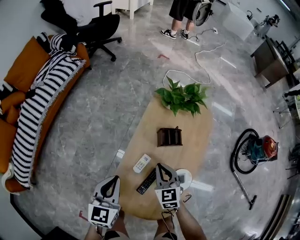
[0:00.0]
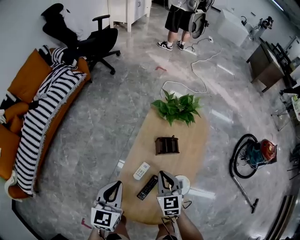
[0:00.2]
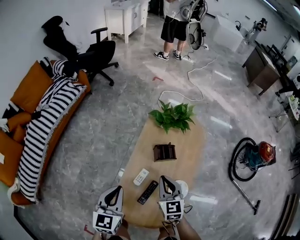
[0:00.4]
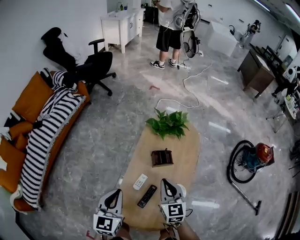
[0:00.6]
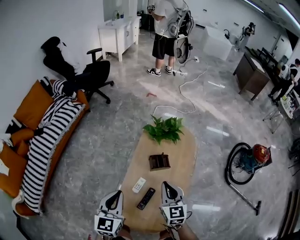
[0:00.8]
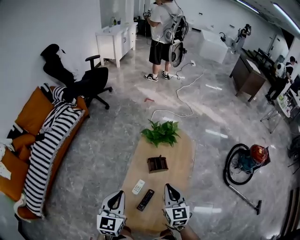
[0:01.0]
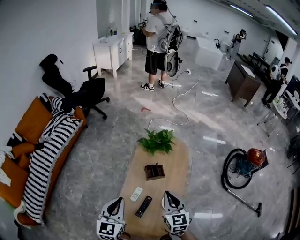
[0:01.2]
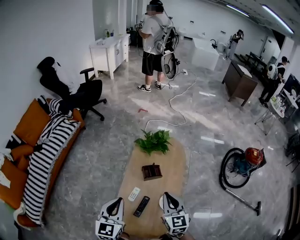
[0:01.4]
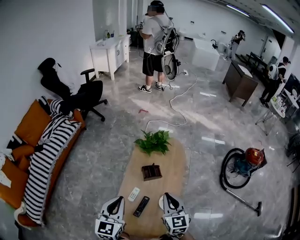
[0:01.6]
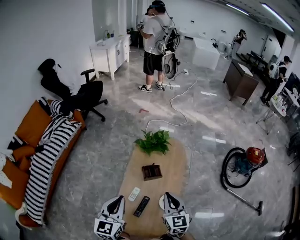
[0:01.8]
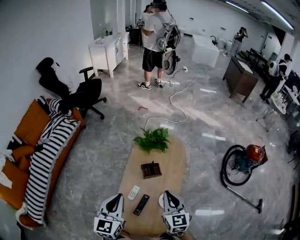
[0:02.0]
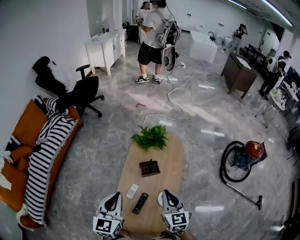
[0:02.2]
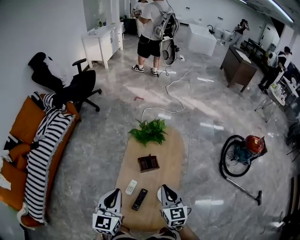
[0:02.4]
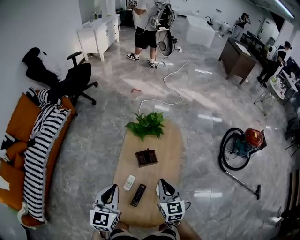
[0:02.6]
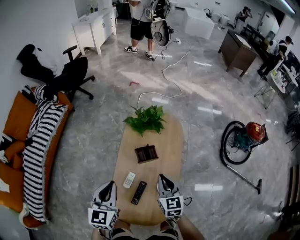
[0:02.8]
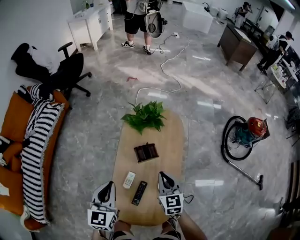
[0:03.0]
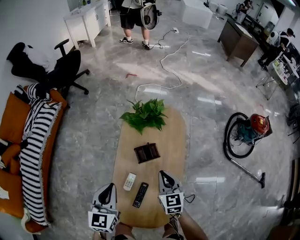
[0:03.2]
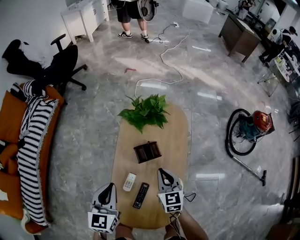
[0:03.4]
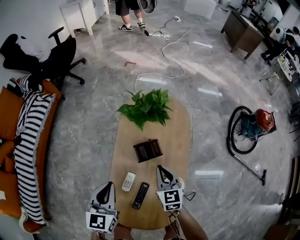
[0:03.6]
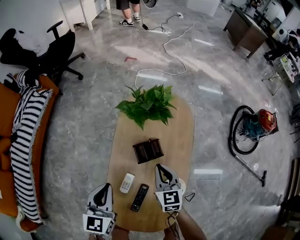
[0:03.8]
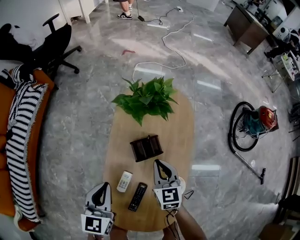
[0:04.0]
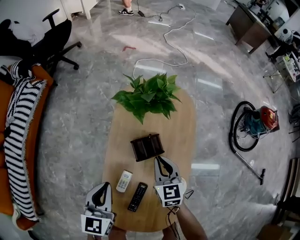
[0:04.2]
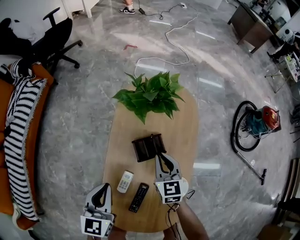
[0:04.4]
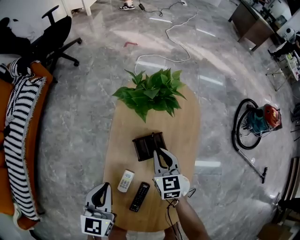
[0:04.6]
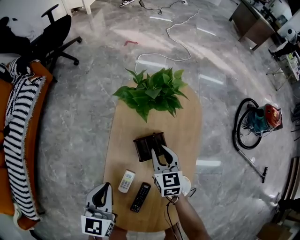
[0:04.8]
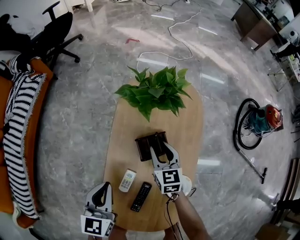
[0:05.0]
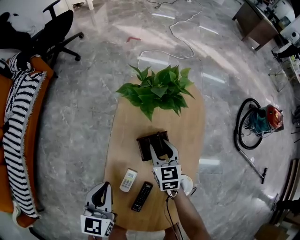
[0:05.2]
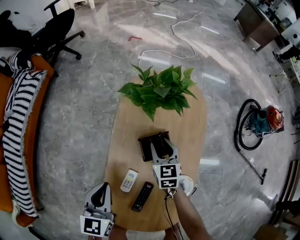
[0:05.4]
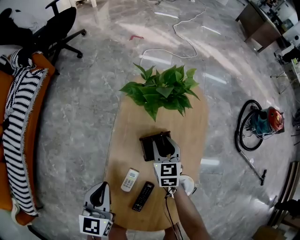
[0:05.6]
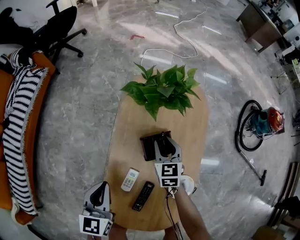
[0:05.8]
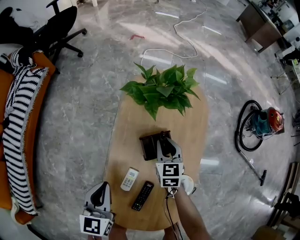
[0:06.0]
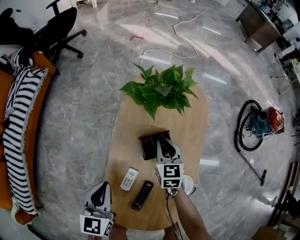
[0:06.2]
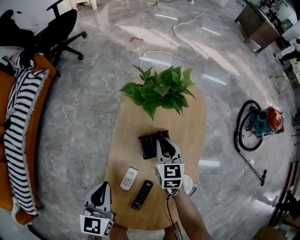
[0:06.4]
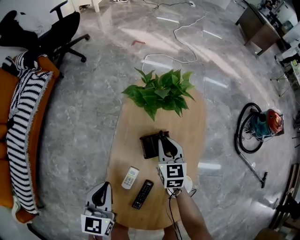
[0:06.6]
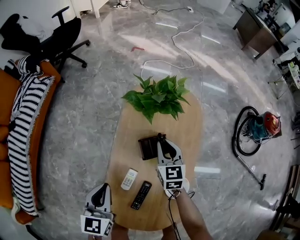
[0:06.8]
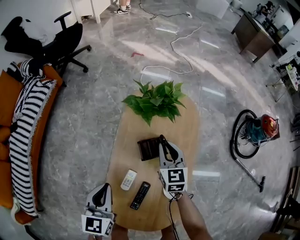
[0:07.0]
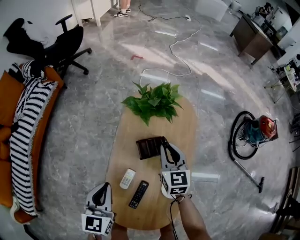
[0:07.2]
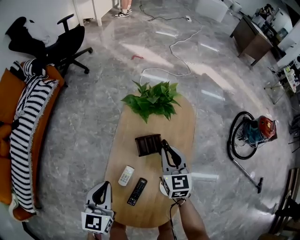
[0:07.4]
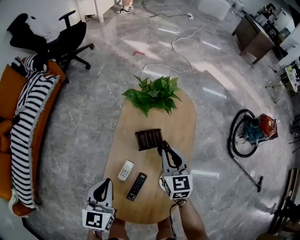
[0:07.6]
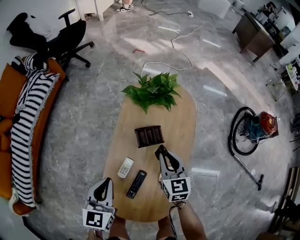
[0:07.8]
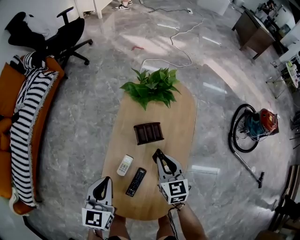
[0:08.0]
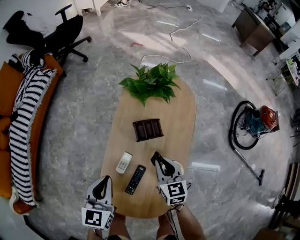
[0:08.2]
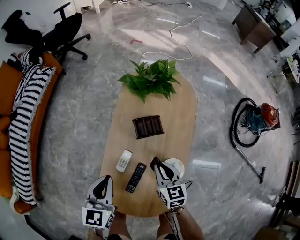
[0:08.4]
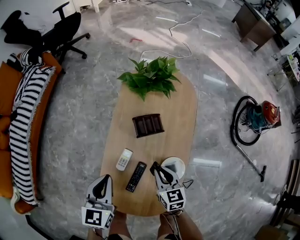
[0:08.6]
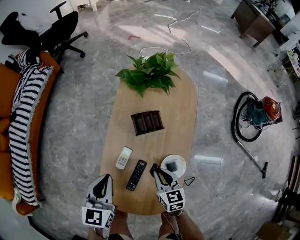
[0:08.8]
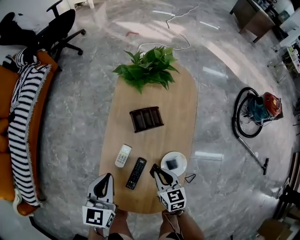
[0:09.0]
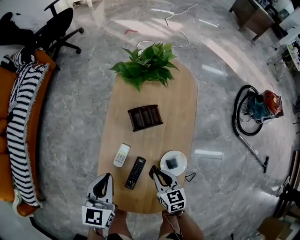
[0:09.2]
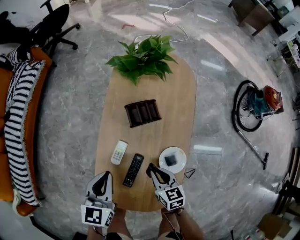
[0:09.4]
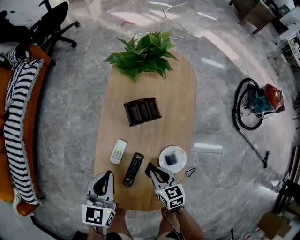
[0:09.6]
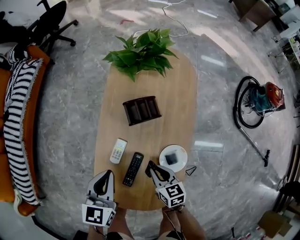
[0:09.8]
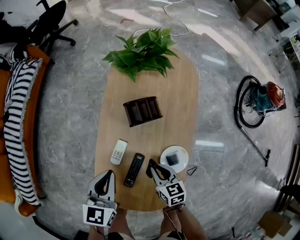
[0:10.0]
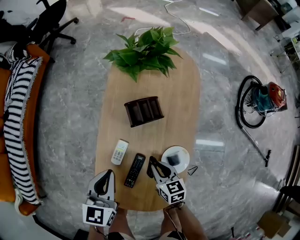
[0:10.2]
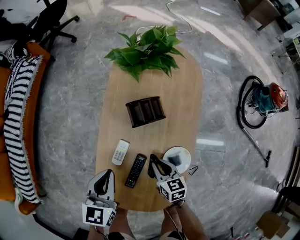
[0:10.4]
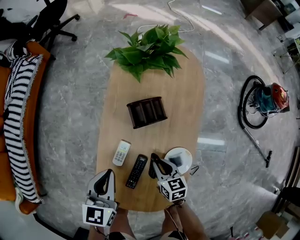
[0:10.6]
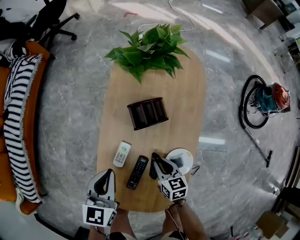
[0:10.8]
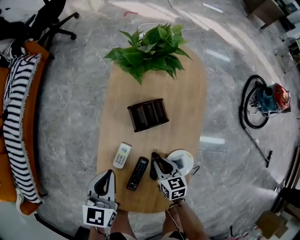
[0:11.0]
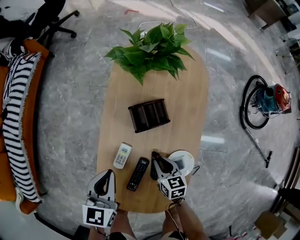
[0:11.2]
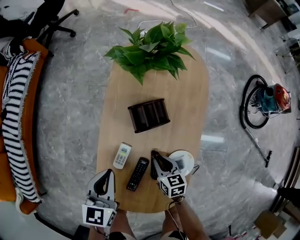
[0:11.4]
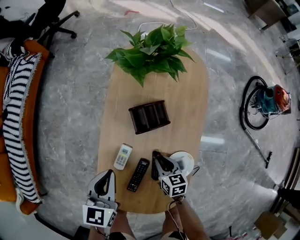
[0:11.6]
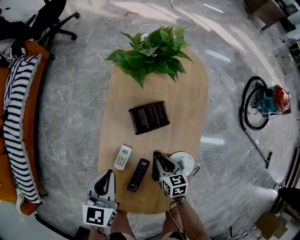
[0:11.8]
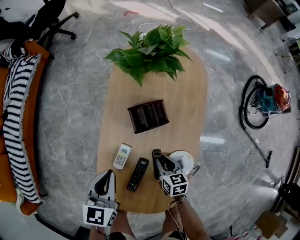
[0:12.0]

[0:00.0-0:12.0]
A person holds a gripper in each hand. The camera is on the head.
0:00.0 to 0:01.6: The left gripper heads upward, covering about 20 cm, while the right gripper travels upward and to the right by some 30 cm, and changes its angle by approximately 20 degrees.
0:01.6 to 0:03.0: Both grippers move downward and forward, some 15 cm.
0:03.0 to 0:04.4: The left gripper moves downward, about 20 cm. The right gripper goes approximately 20 cm downward and forward.
0:04.4 to 0:06.0: The right gripper travels downward and forward by some 10 cm.
0:06.0 to 0:07.6: The right gripper heads upward and backward, covering roughly 20 cm. The left gripper travels upward and backward by some 10 cm.
0:07.6 to 0:09.0: The right gripper is displaced backward and downward by approximately 25 cm, and swivels about 20 degrees; the left gripper shifts some 5 cm downward.
0:09.0 to 0:10.4: The right gripper moves downward, approximately 5 cm. Meanwhile the left gripper shifts by roughly 5 cm.
0:10.4 to 0:12.0: The right gripper ends up approximately 5 cm from where it was.

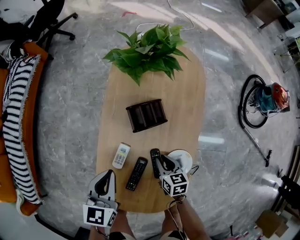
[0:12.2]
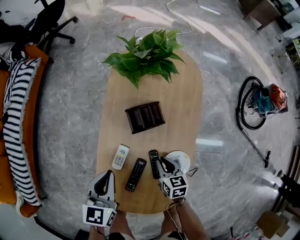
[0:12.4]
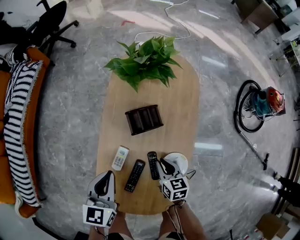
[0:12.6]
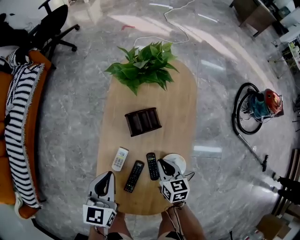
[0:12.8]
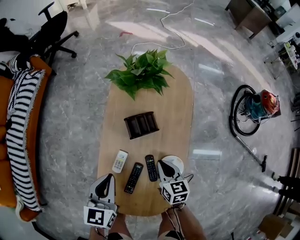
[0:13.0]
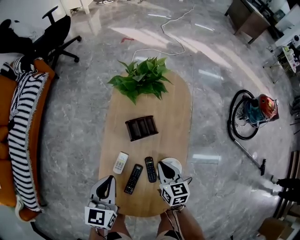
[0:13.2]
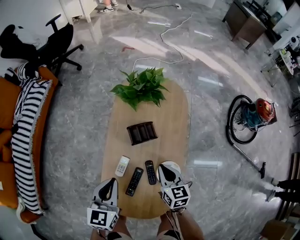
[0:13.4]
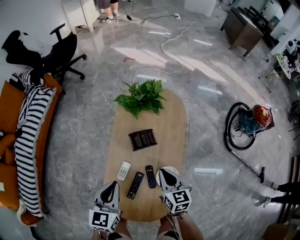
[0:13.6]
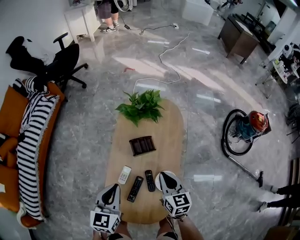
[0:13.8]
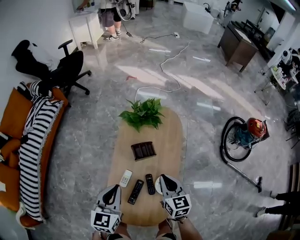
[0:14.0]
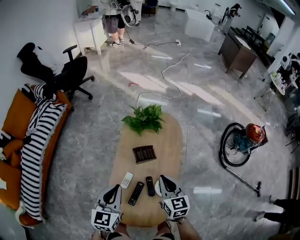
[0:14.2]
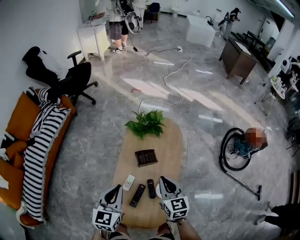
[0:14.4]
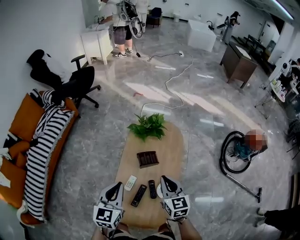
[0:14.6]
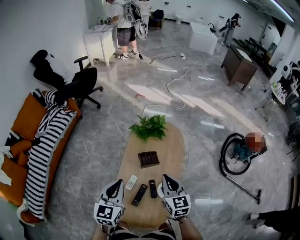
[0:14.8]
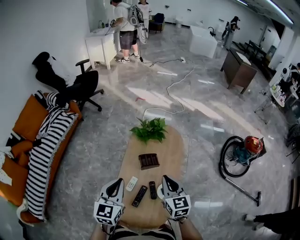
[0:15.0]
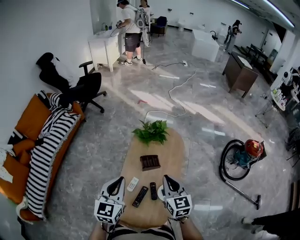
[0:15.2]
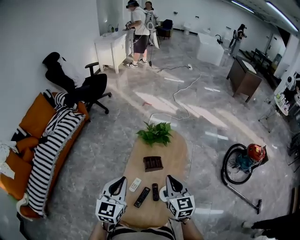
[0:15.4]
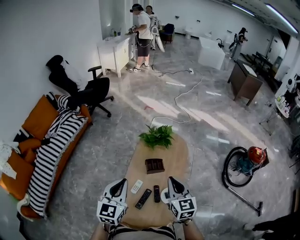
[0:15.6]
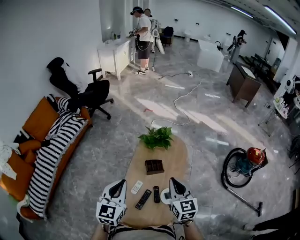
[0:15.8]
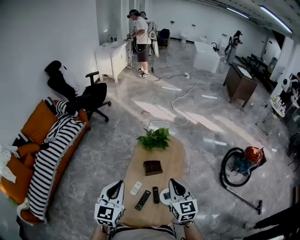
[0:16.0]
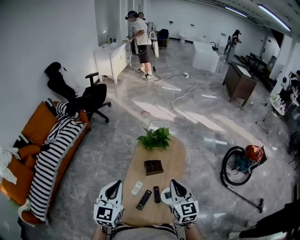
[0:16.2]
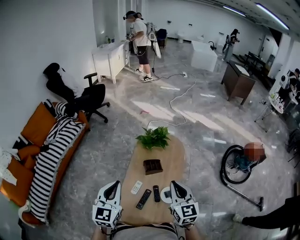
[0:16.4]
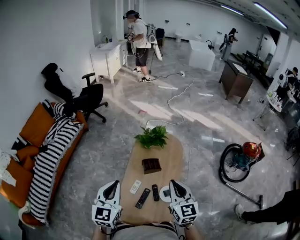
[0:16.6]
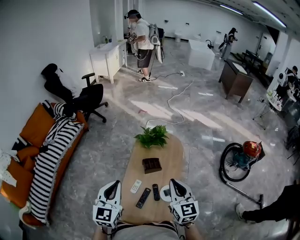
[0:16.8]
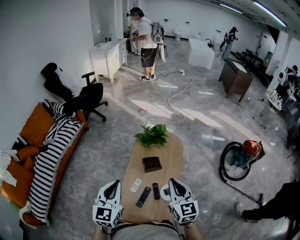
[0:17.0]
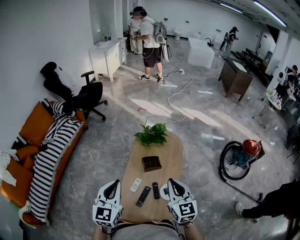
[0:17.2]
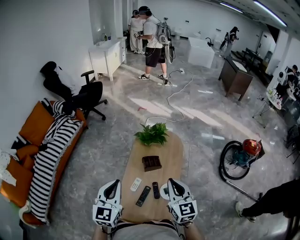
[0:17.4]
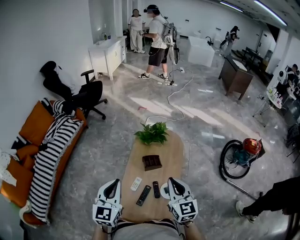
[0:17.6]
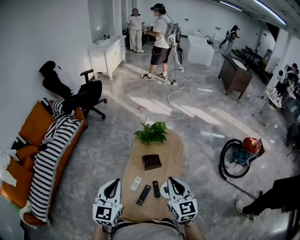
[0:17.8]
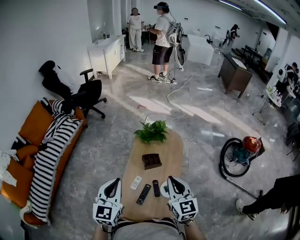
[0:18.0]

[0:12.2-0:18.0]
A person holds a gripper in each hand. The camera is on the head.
0:12.2 to 0:13.6: The left gripper goes about 15 cm upward; the right gripper heads upward, covering approximately 25 cm, and swivels roughly 20 degrees.
0:13.6 to 0:15.0: Both grippers move upward, some 20 cm.
0:15.0 to 0:16.6: The grippers both shift upward and backward by about 10 cm.
0:16.6 to 0:18.0: Both grippers stay put.

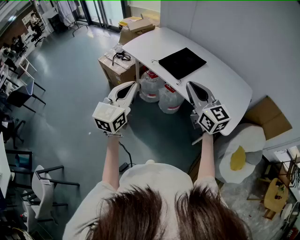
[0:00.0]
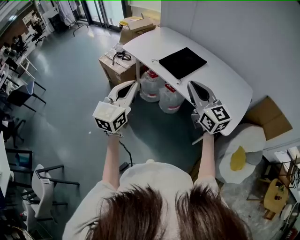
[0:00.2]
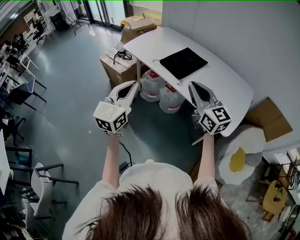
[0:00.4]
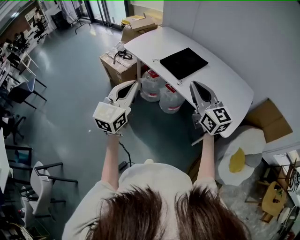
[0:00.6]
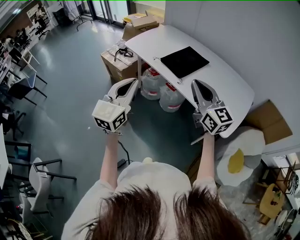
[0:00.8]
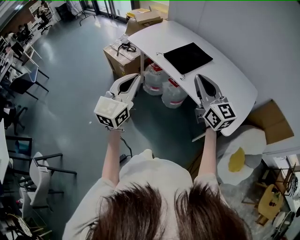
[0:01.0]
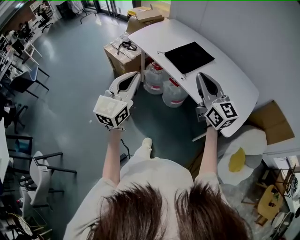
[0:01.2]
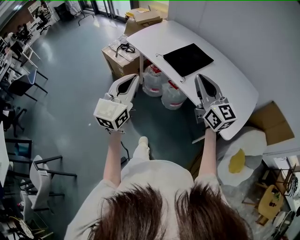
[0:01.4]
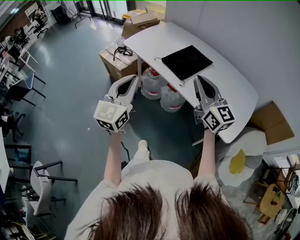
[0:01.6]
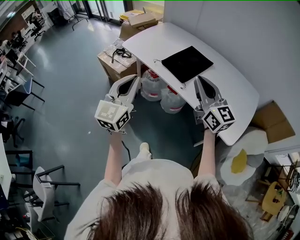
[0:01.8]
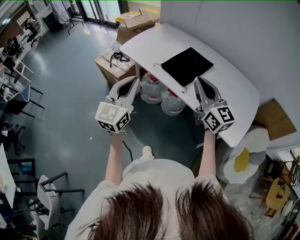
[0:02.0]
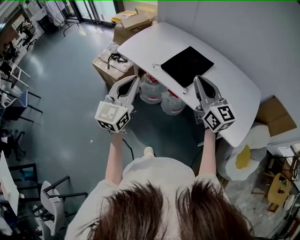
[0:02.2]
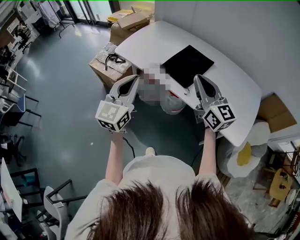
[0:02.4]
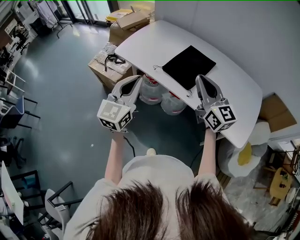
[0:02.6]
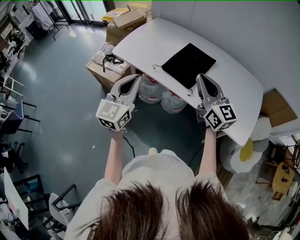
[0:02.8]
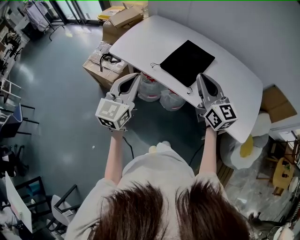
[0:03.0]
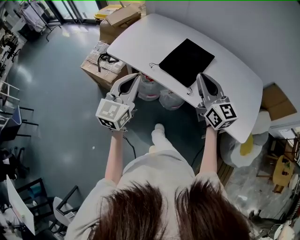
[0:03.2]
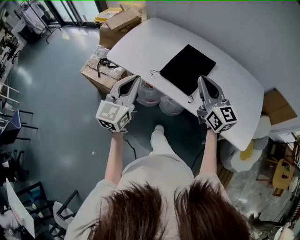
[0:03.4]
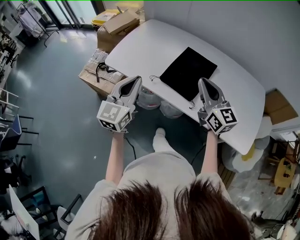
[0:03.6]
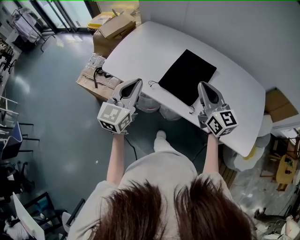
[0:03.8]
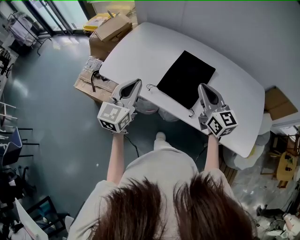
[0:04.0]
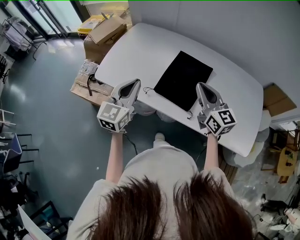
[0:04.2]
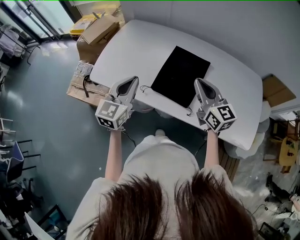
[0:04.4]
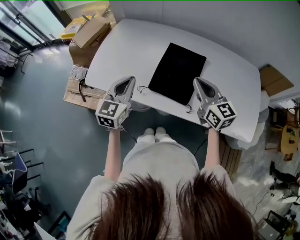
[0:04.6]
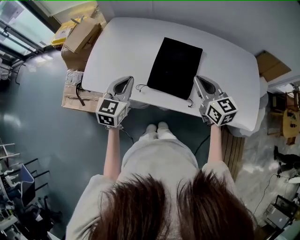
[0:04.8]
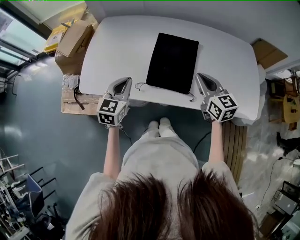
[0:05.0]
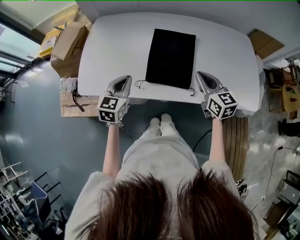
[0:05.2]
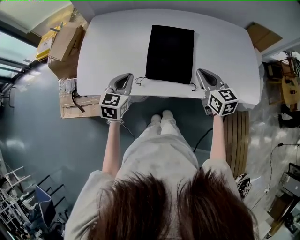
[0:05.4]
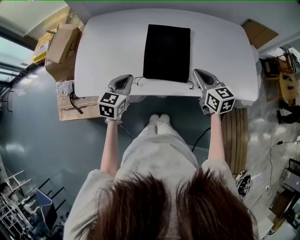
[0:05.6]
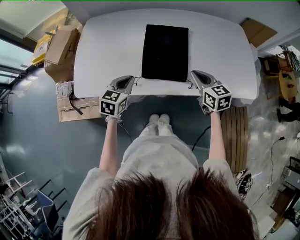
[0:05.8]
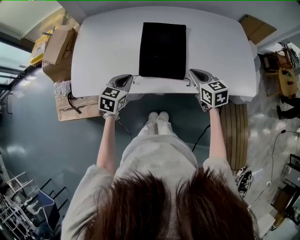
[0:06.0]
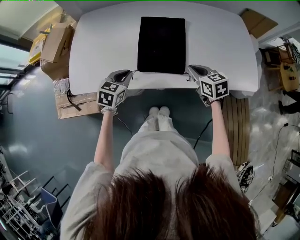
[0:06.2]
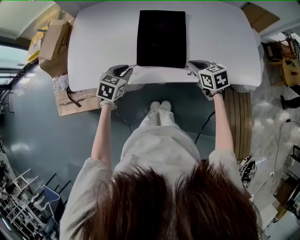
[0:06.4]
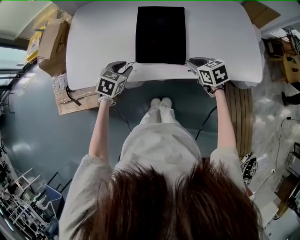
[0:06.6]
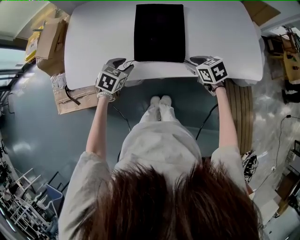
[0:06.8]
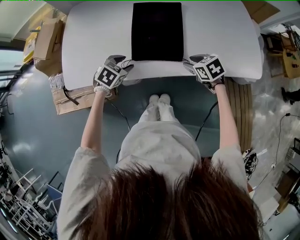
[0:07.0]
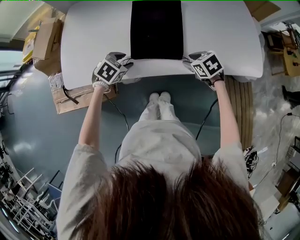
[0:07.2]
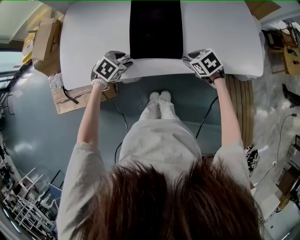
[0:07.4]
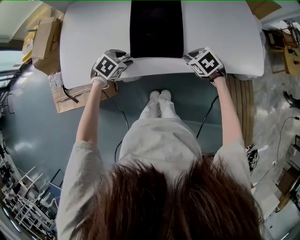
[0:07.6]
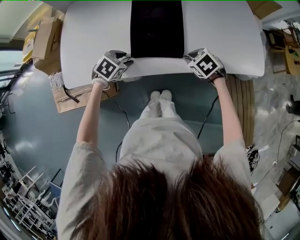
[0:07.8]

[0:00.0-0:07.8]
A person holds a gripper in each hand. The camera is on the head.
0:00.0 to 0:01.6: The grippers both shift forward by approximately 5 cm.
0:01.6 to 0:03.2: The two grippers go some 20 cm forward.
0:03.2 to 0:04.6: The left gripper shifts approximately 20 cm forward; the right gripper moves forward and downward, roughly 15 cm.
0:04.6 to 0:06.2: The two grippers go some 15 cm downward. The right gripper rotates about 30 degrees. The left gripper turns by approximately 40 degrees.
0:06.2 to 0:07.8: The grippers both shift downward by some 10 cm. The left gripper swivels some 30 degrees, and opens its fingers. Meanwhile the right gripper swivels about 40 degrees, and opens.
